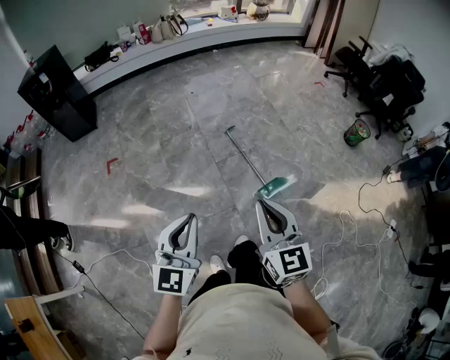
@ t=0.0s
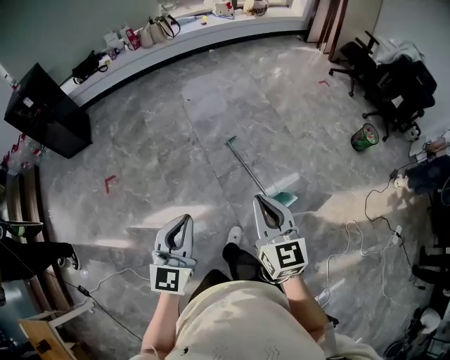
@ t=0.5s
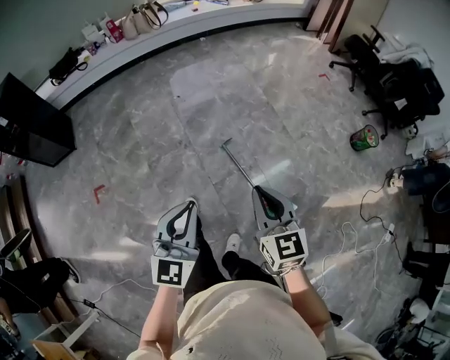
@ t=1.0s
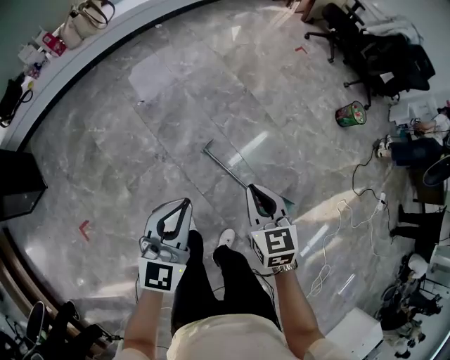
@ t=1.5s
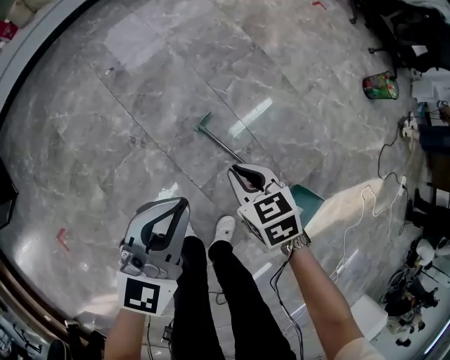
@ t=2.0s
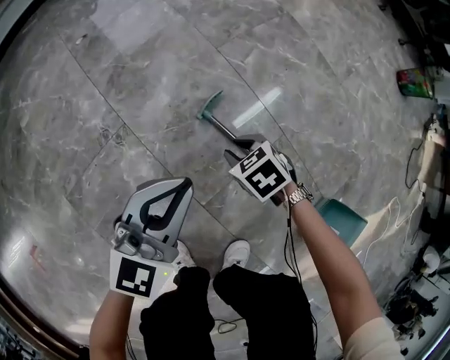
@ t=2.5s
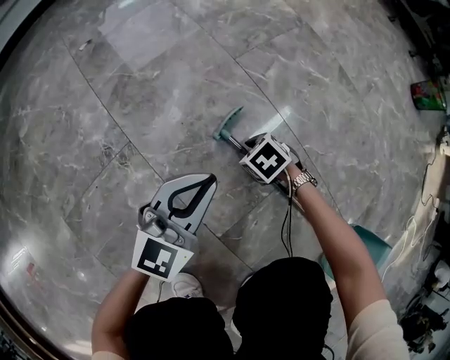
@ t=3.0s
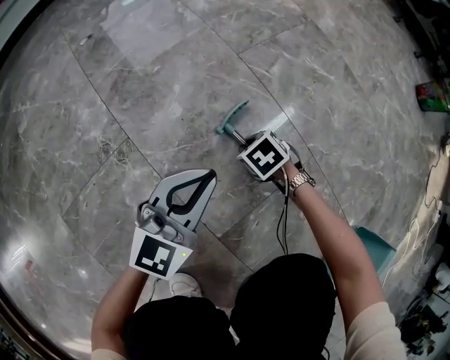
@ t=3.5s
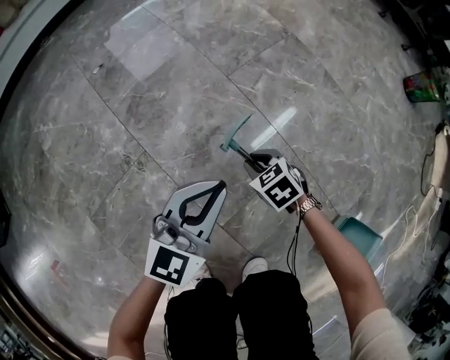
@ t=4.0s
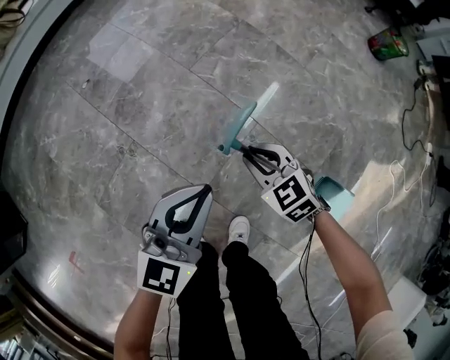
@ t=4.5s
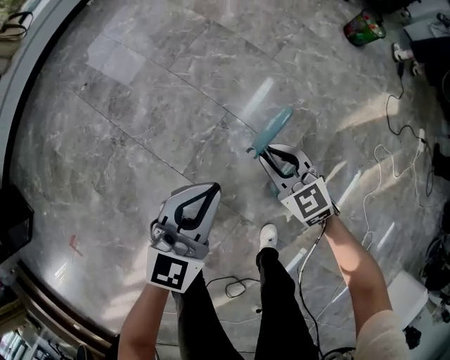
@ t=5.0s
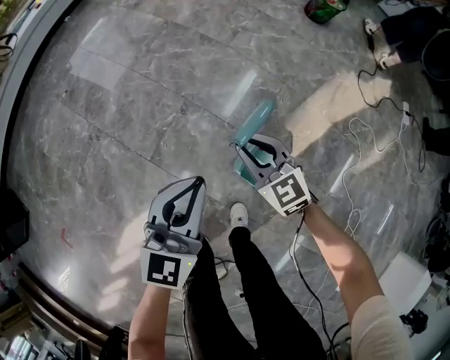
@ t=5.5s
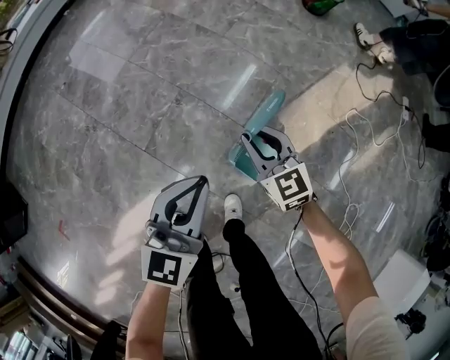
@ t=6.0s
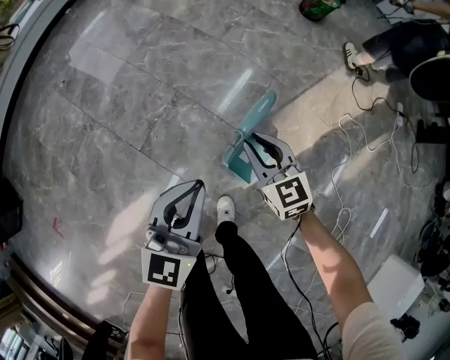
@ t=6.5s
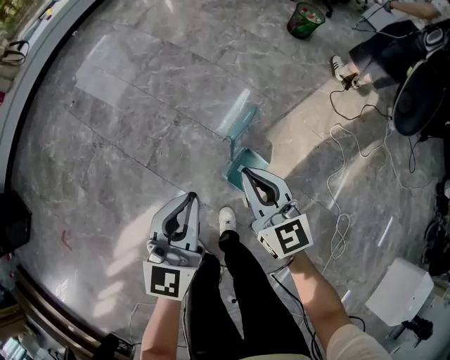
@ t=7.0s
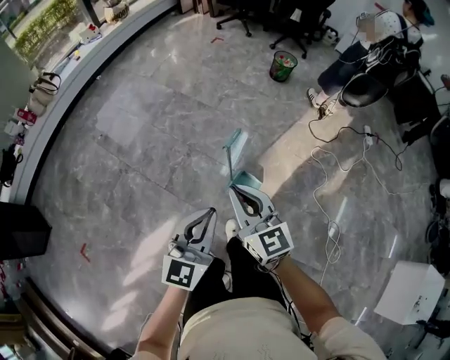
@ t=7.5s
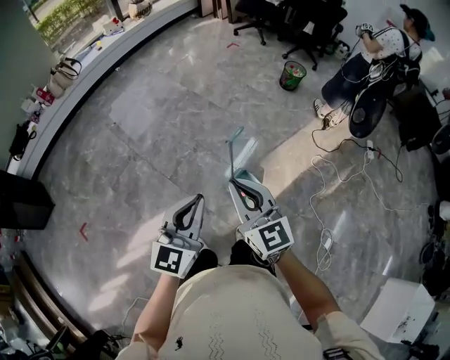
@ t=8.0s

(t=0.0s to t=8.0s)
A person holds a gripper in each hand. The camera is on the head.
t=0.0s - t=2.0s: The two grippers travel together, forward, approximately 70 cm. The two grippers go approximately 50 cm downward. The right gripper tilts its fingers roughly 40 degrees downward. Meanwhile the left gripper swivels about 40 degrees.
t=2.0s - t=4.0s: Both grippers travel together downward, roughly 40 cm.
t=4.0s - t=6.0s: Both grippers are carried to the right and backward, some 50 cm. Both grippers move upward, some 40 cm. The right gripper points its fingers roughly 40 degrees further upward.
t=6.0s - t=8.0s: Both grippers travel together upward and backward, approximately 50 cm. The right gripper rotates approximately 20 degrees.

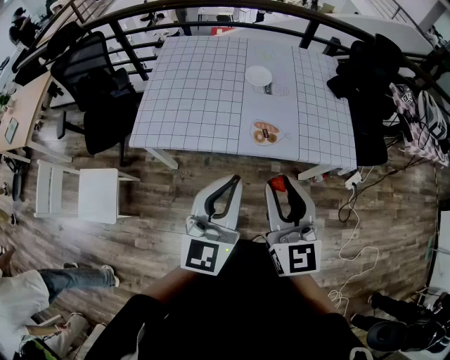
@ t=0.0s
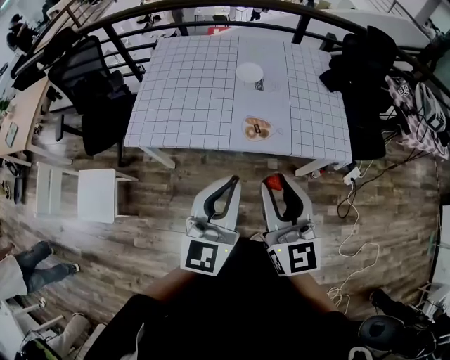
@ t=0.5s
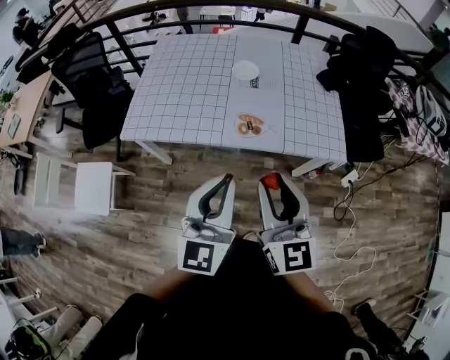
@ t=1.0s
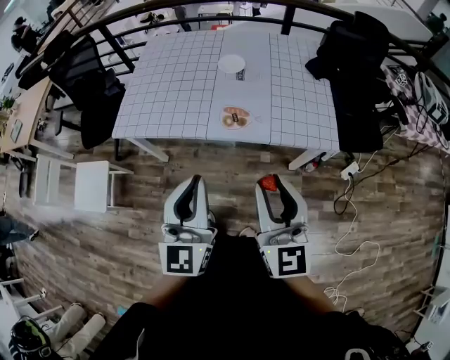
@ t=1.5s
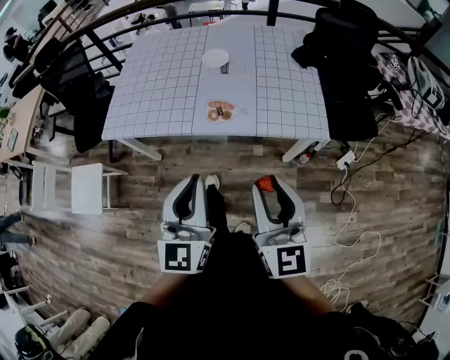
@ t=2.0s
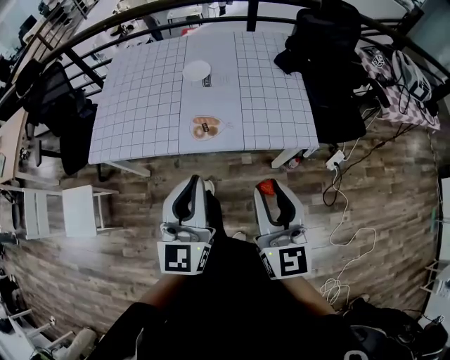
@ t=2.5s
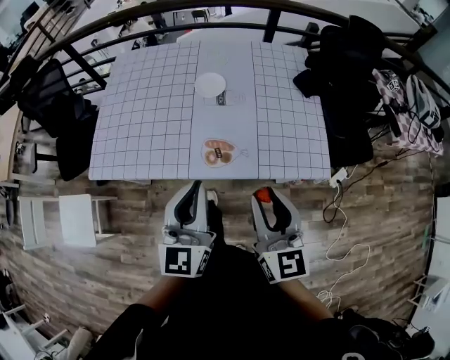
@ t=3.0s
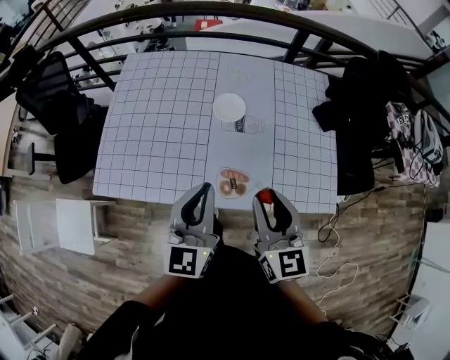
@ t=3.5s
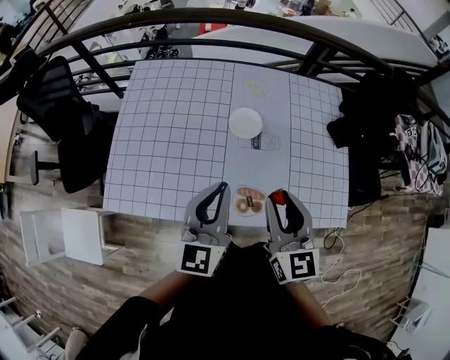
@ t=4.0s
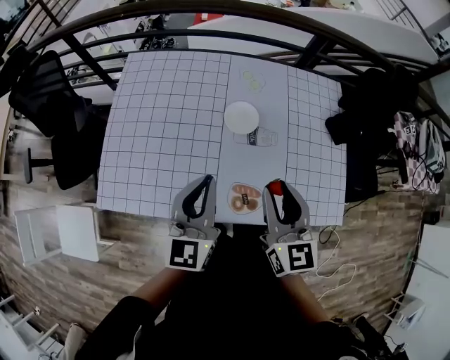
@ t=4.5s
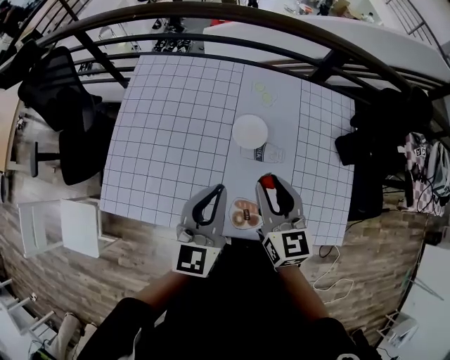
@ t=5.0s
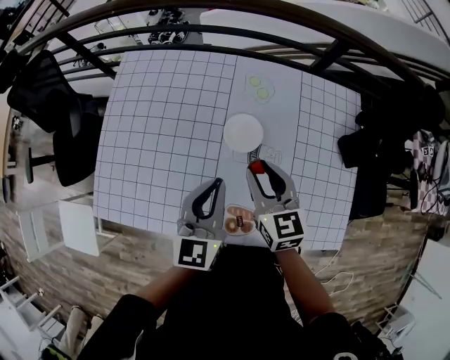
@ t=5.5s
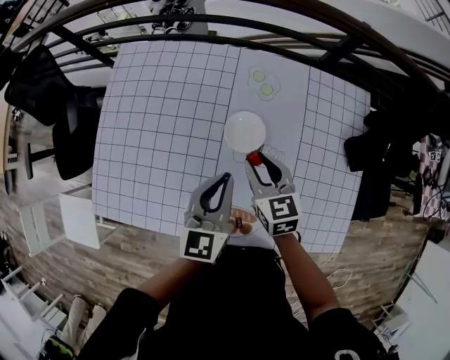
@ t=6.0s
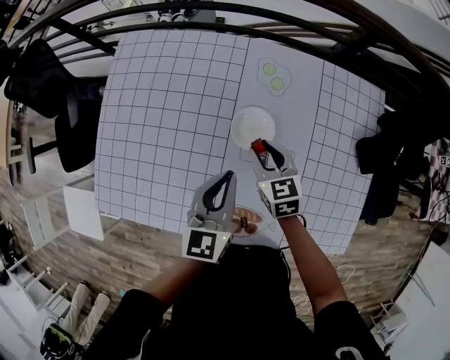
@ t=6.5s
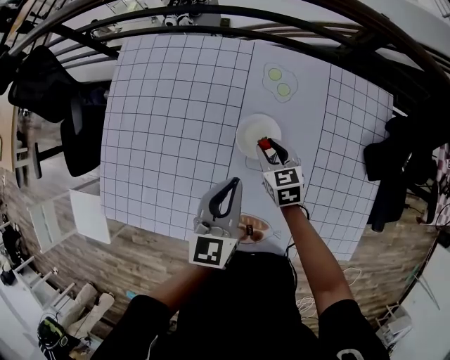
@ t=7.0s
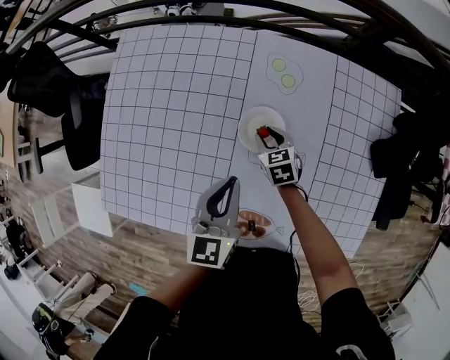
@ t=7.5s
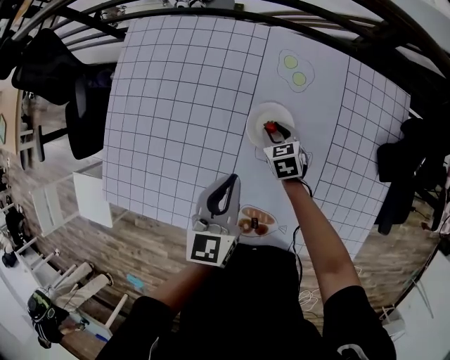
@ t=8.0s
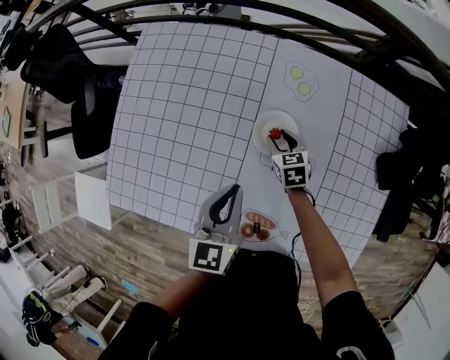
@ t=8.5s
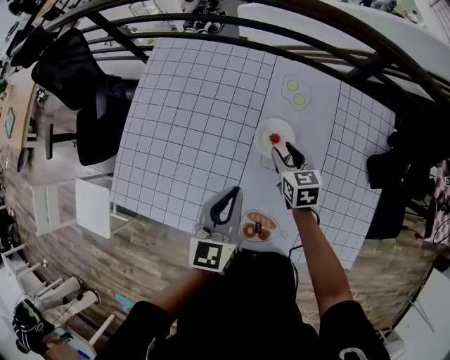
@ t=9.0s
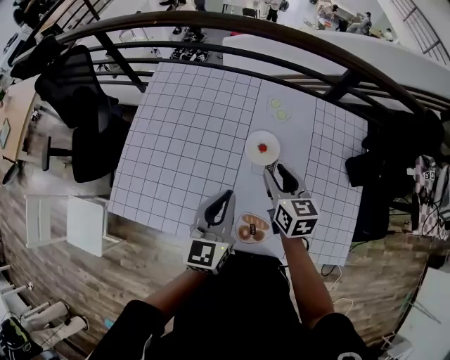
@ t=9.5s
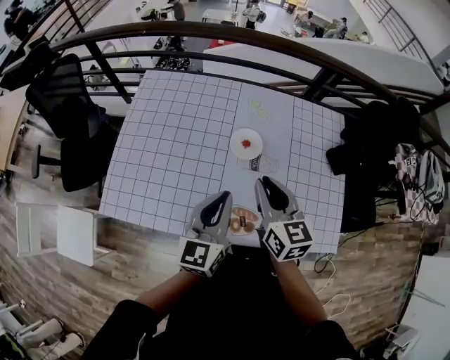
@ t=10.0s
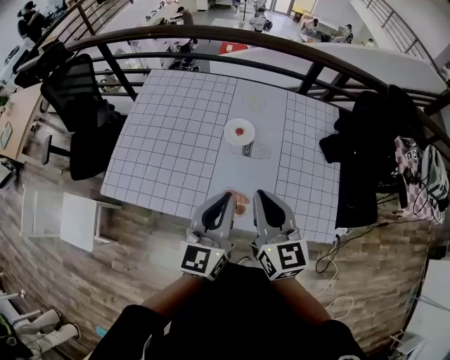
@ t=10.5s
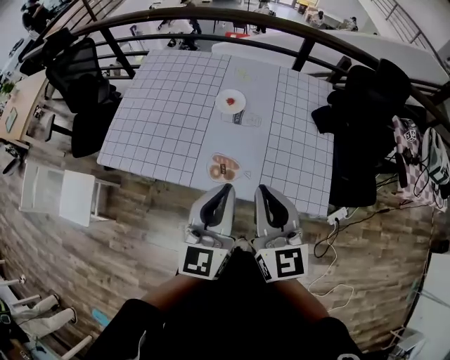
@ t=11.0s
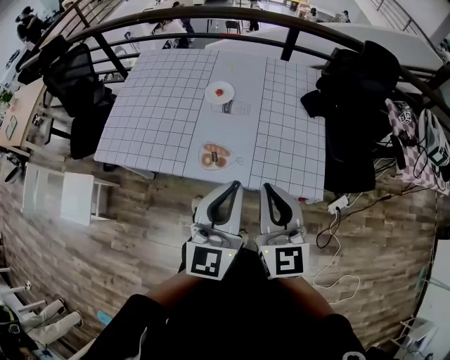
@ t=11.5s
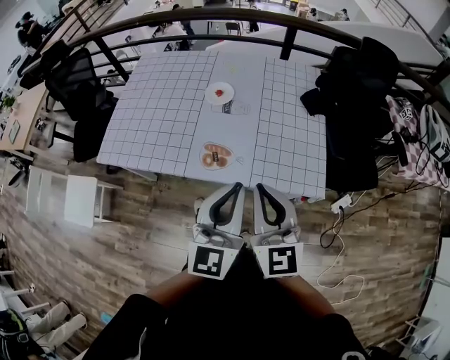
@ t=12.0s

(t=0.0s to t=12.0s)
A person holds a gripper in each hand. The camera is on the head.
t=0.0s - t=2.0s: The right gripper is displaced to the right by some 20 cm. The left gripper travels to the right and backward by approximately 20 cm.
t=2.0s - t=4.0s: The two grippers travel together, forward, about 40 cm.
t=4.0s - t=6.0s: The two grippers go roughly 25 cm forward and downward. The right gripper swivels about 30 degrees.
t=6.0s - t=8.0s: The left gripper shifts approximately 5 cm downward. Meanwhile the right gripper goes approximately 20 cm downward, and turns by approximately 20 degrees.
t=8.0s - t=10.0s: The left gripper travels upward and backward by roughly 20 cm, and changes its angle by about 20 degrees; the right gripper goes about 40 cm upward and backward, and angles its fingers upward, by some 40 degrees.
t=10.0s - t=12.0s: The grippers both shift backward and to the right by roughly 35 cm. The right gripper turns by about 20 degrees.

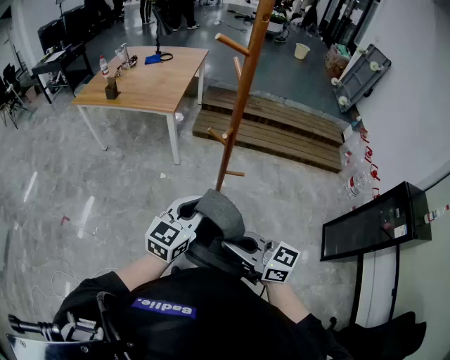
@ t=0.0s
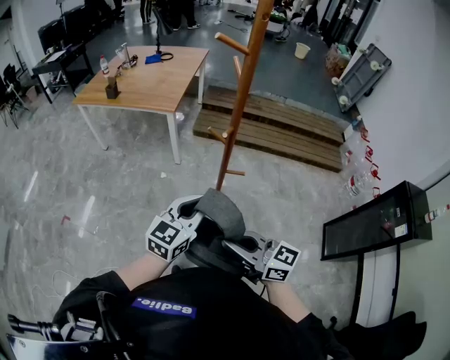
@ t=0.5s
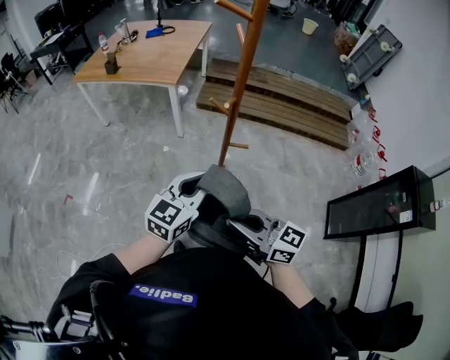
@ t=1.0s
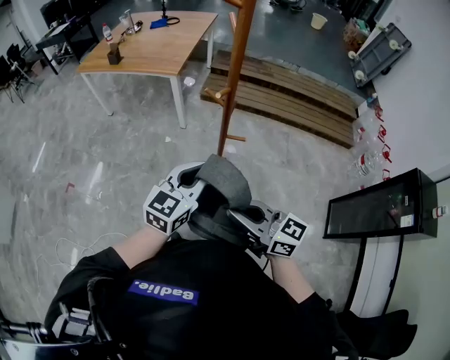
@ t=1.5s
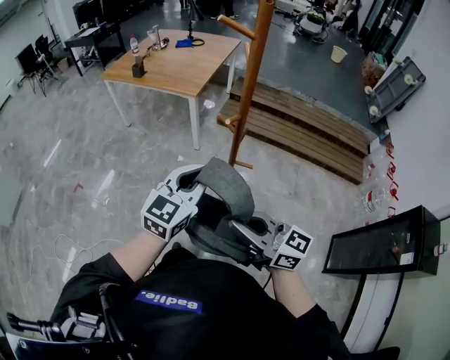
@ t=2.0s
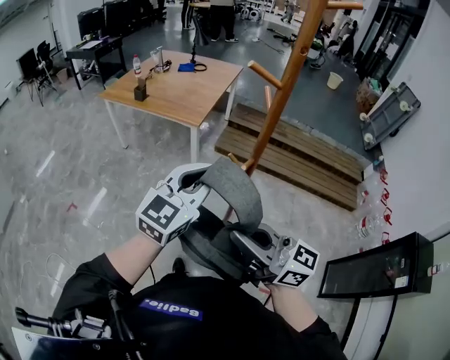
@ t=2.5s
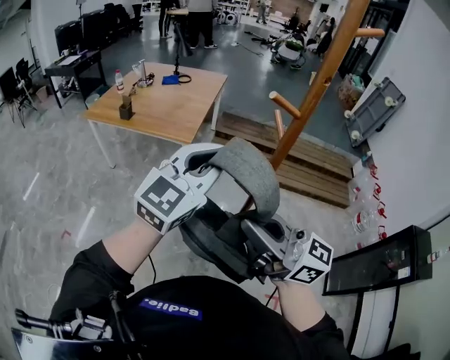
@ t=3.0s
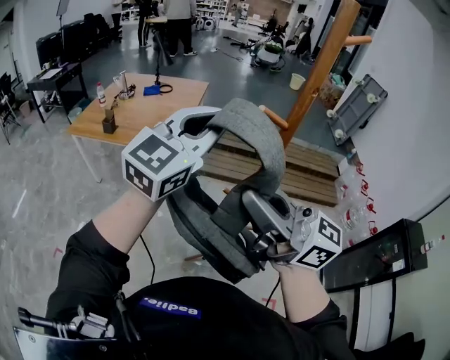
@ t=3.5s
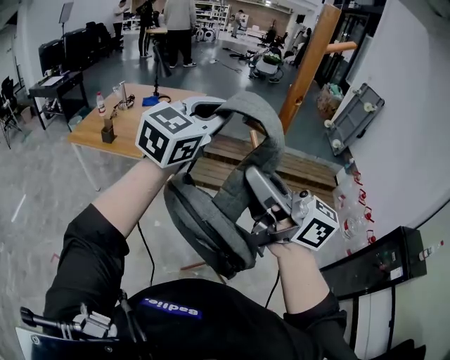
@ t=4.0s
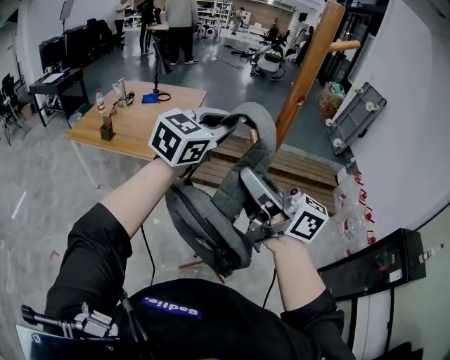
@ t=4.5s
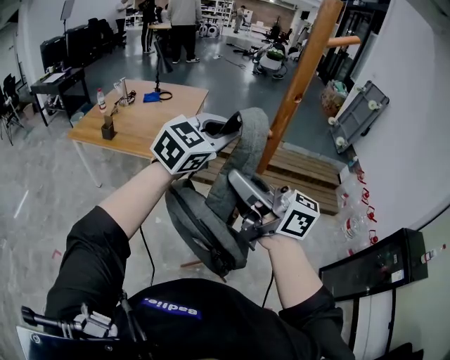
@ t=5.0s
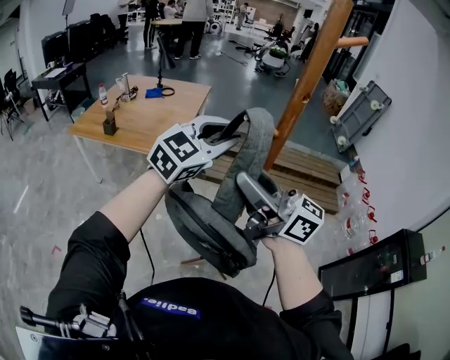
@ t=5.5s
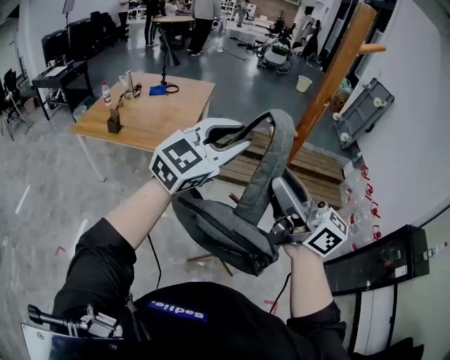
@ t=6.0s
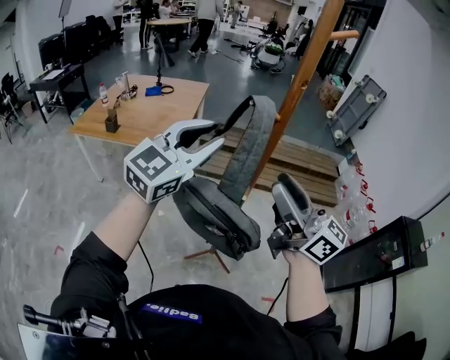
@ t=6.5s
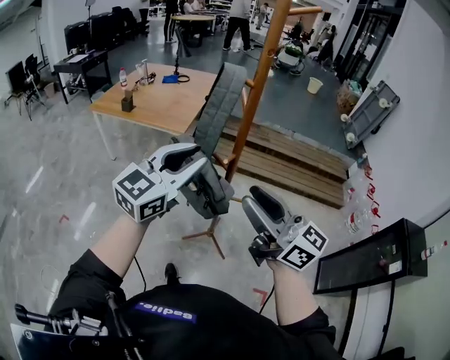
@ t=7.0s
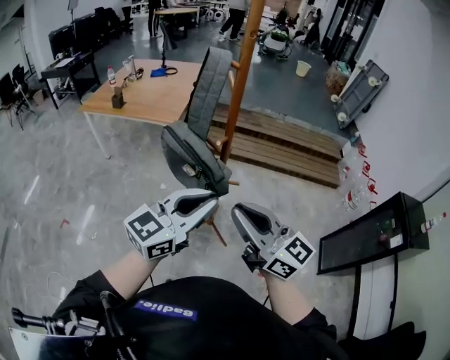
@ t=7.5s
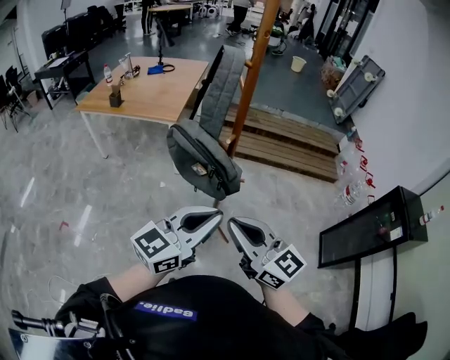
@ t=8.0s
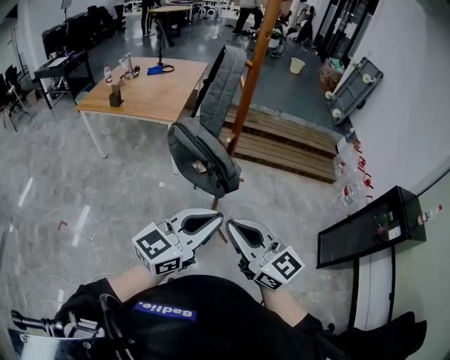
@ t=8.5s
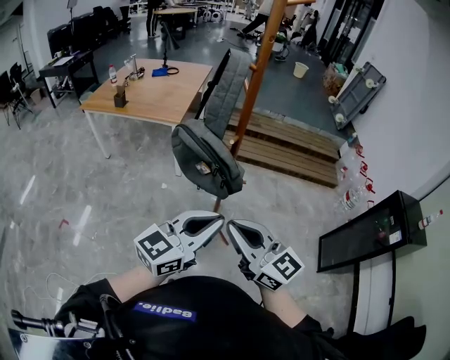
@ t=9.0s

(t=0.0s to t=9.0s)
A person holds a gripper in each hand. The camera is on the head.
t=0.0s - t=2.0s: The left gripper ends up approximately 5 cm from where it was. The right gripper travels to the right by approximately 5 cm.
t=2.0s - t=4.5s: Both grippers travel together forward and upward, roughly 35 cm. The left gripper turns by about 20 degrees. The right gripper rotates about 20 degrees.
t=4.5s - t=7.0s: The left gripper is displaced backward by approximately 25 cm. The right gripper shifts roughly 20 cm backward and downward, and opens its fingers.
t=7.0s - t=9.0s: The left gripper shifts some 20 cm backward and downward, changes its angle by some 20 degrees, and closes its fingers. Meanwhile the right gripper shifts roughly 15 cm backward, downward and to the left, and closes up.
